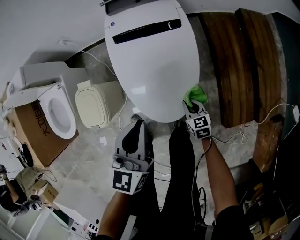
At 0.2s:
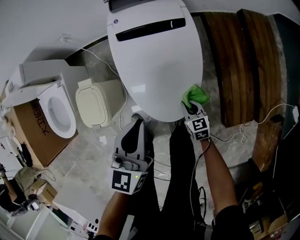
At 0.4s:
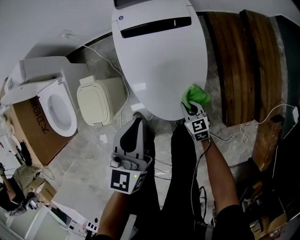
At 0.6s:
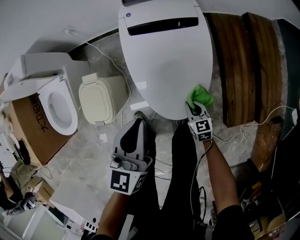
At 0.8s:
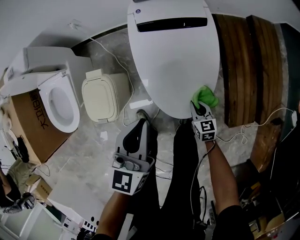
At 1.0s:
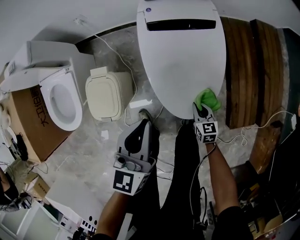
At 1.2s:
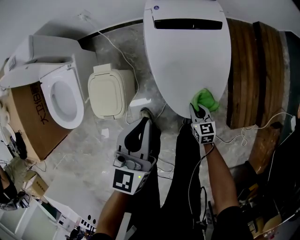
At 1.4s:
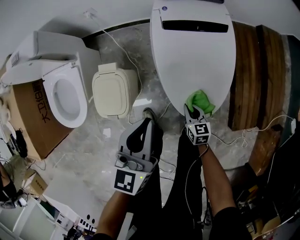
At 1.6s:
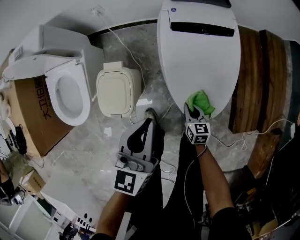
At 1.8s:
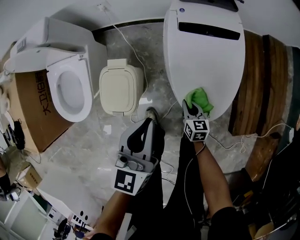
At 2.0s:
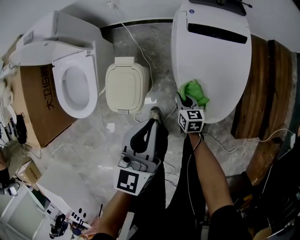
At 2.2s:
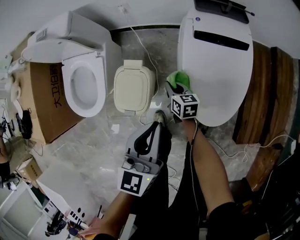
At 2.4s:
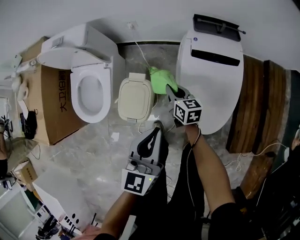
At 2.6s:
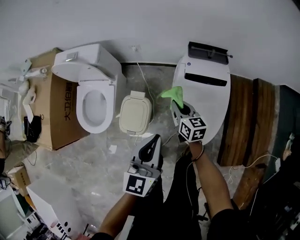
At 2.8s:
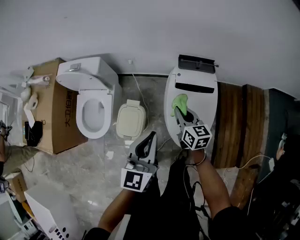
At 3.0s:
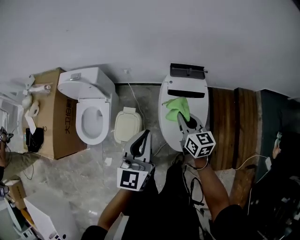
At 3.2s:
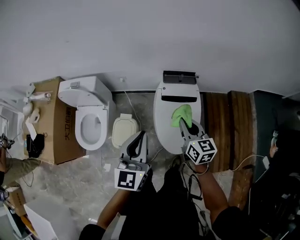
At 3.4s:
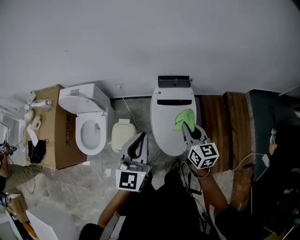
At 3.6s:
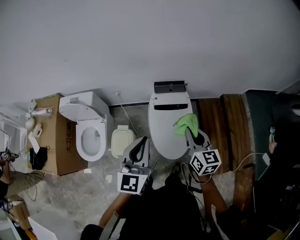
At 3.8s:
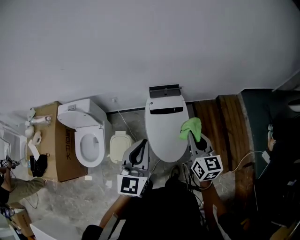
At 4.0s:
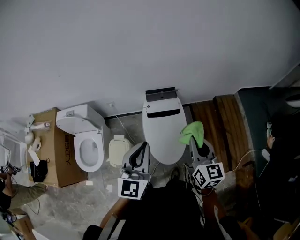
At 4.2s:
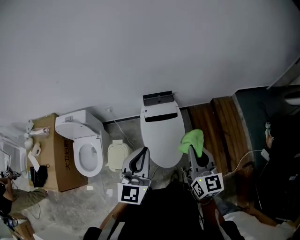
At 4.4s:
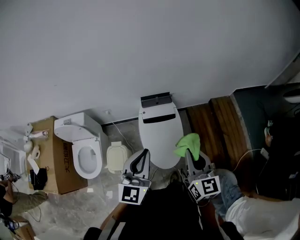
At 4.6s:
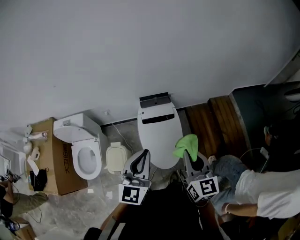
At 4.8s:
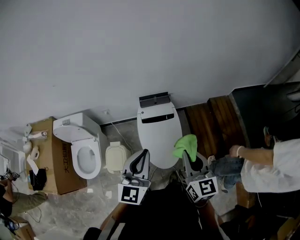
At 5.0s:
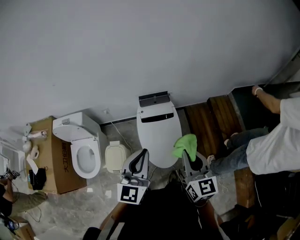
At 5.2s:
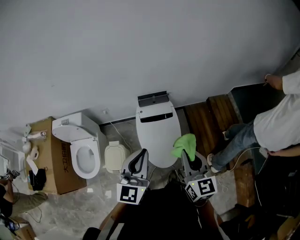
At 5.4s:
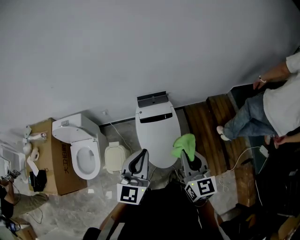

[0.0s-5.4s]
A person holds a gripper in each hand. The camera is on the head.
0.0s to 1.4s: The grippers both shift to the left by roughly 15 cm.
1.4s to 2.8s: The left gripper moves upward, roughly 25 cm. The right gripper heads upward and forward, covering some 40 cm, and swivels some 20 degrees.
2.8s to 4.0s: The left gripper shifts some 20 cm upward and to the right. Meanwhile the right gripper moves upward, to the right and backward, about 40 cm, and rotates some 30 degrees.
4.0s to 5.4s: There are only small adjustments of the grippers.

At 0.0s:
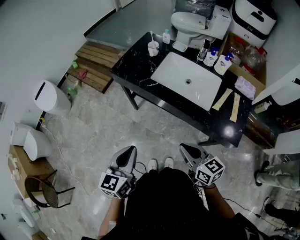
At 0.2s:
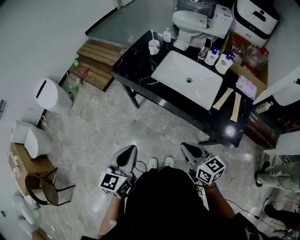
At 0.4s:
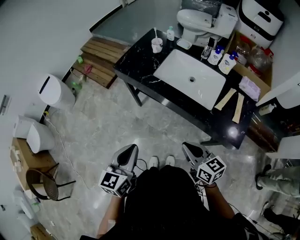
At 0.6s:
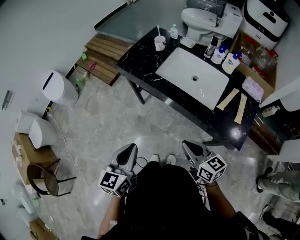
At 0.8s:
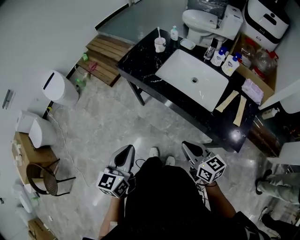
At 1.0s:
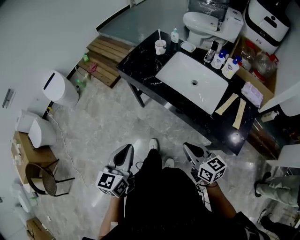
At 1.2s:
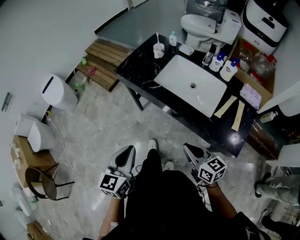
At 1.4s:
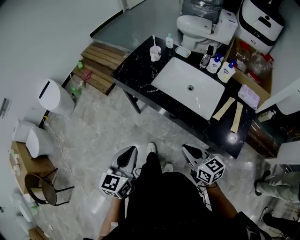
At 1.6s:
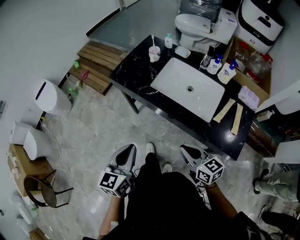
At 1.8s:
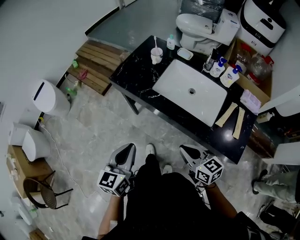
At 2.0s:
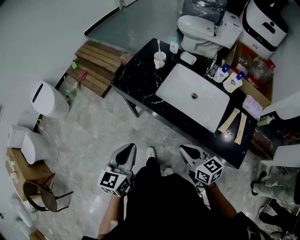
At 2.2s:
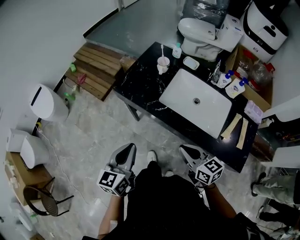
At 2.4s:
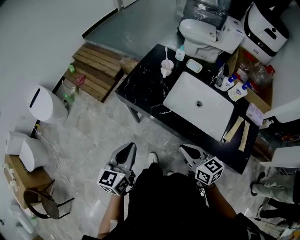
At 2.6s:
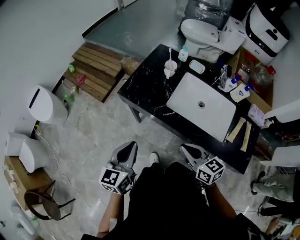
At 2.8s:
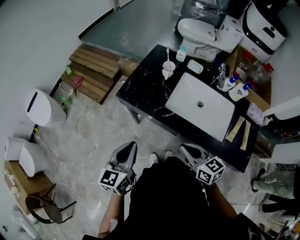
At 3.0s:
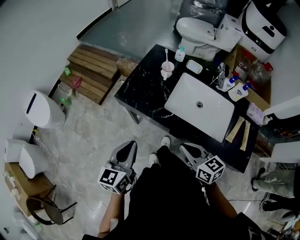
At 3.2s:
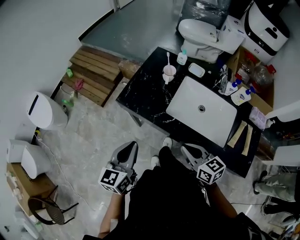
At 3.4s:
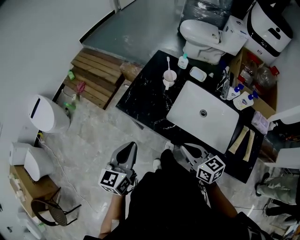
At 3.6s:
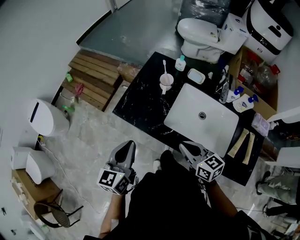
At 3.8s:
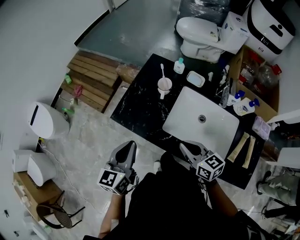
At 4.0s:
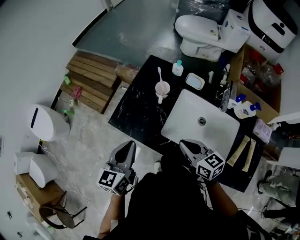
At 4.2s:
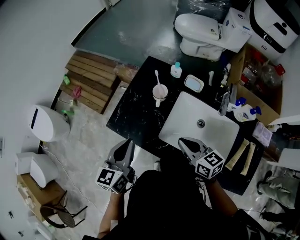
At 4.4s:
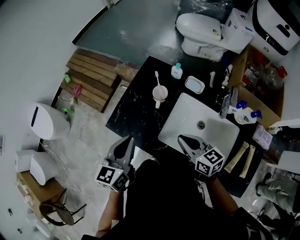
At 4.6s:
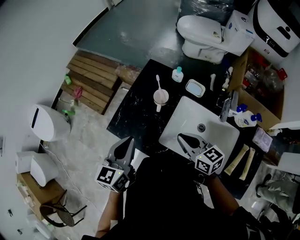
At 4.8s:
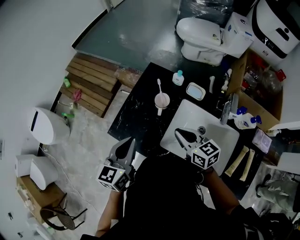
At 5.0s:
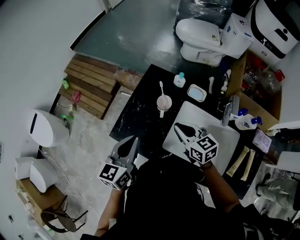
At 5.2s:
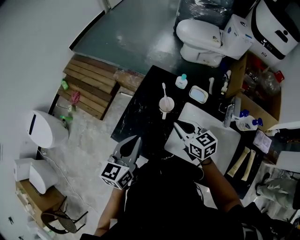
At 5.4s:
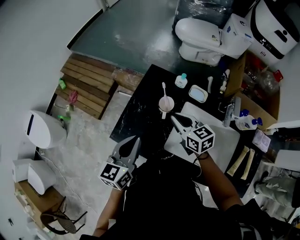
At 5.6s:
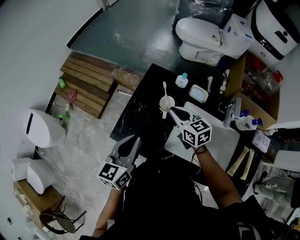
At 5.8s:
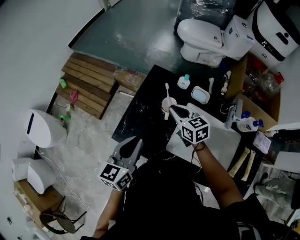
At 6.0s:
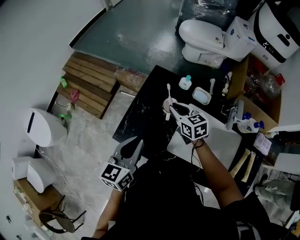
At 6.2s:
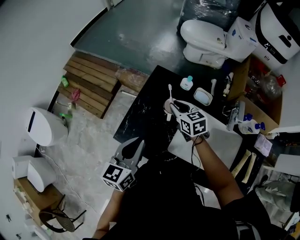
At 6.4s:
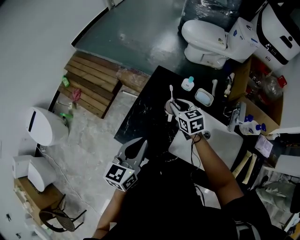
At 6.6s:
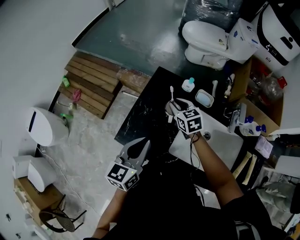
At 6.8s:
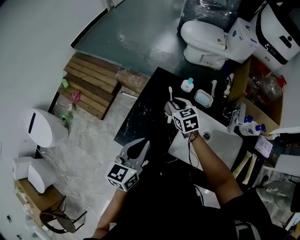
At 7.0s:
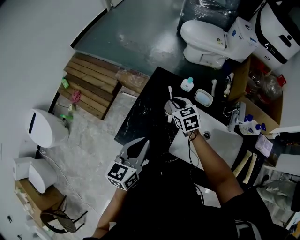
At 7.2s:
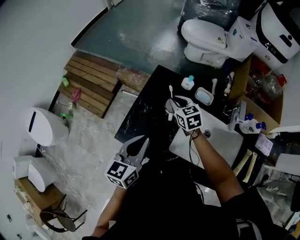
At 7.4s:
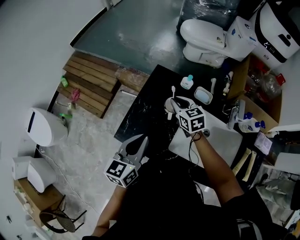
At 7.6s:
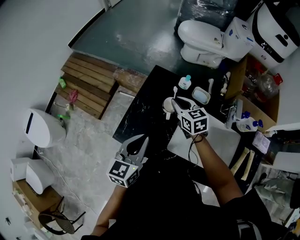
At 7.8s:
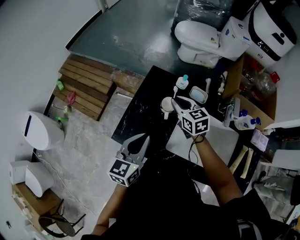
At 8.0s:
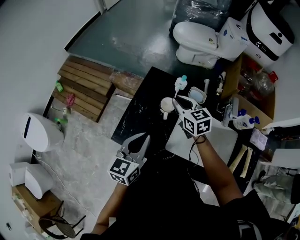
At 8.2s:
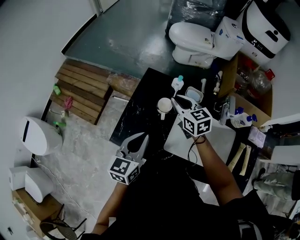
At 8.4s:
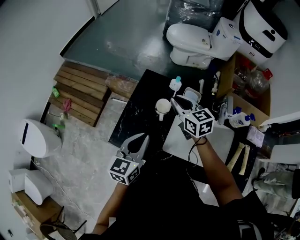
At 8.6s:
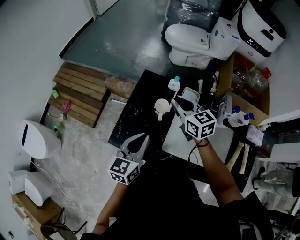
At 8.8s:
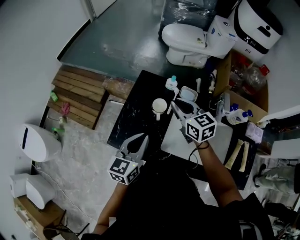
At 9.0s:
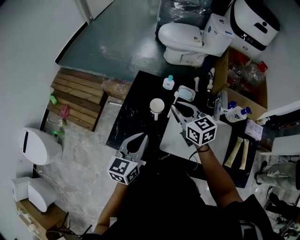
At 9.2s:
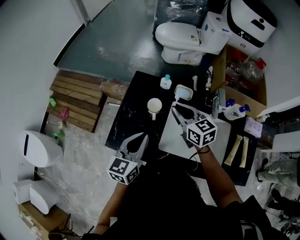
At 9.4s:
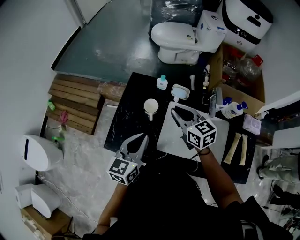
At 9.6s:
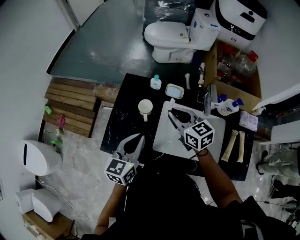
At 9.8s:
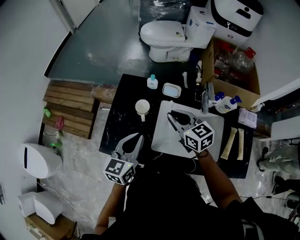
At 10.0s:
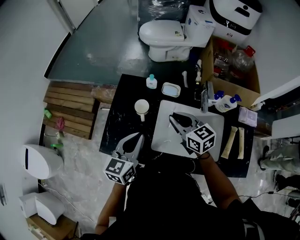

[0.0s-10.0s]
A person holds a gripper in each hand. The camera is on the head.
0.0s to 1.4s: The right gripper moves about 5 cm.
1.4s to 2.8s: The two grippers go approximately 20 cm forward and to the left.
2.8s to 4.2s: The right gripper heads forward, covering some 20 cm; the left gripper shifts approximately 20 cm forward and to the right.
4.2s to 5.8s: The right gripper is displaced forward by about 20 cm, while the left gripper travels forward by roughly 5 cm.
5.8s to 7.2s: The right gripper goes about 5 cm forward.
7.2s to 8.6s: The right gripper shifts some 10 cm upward.
8.6s to 10.0s: The left gripper heads to the right, covering approximately 5 cm. Meanwhile the right gripper goes roughly 10 cm to the right and backward.

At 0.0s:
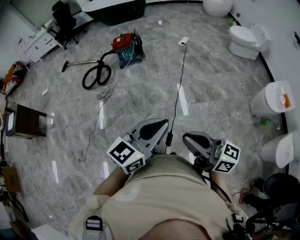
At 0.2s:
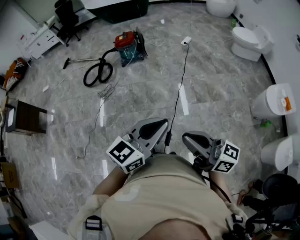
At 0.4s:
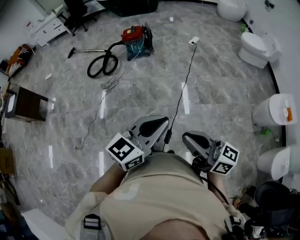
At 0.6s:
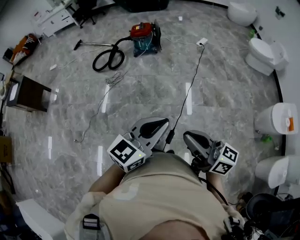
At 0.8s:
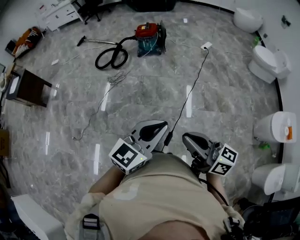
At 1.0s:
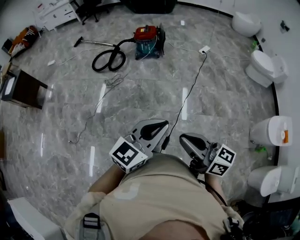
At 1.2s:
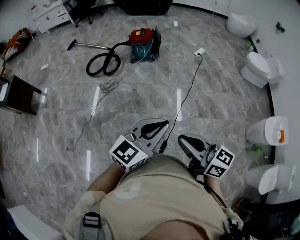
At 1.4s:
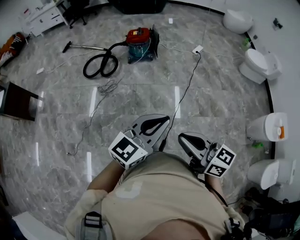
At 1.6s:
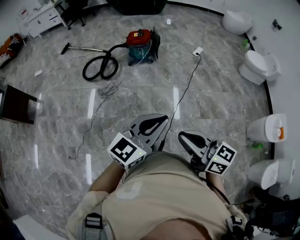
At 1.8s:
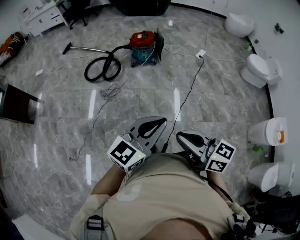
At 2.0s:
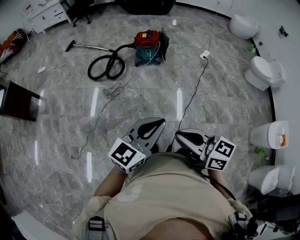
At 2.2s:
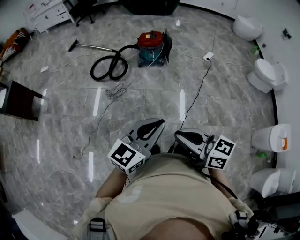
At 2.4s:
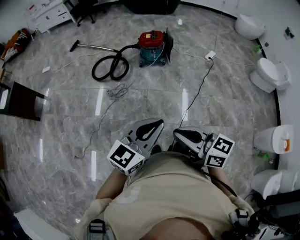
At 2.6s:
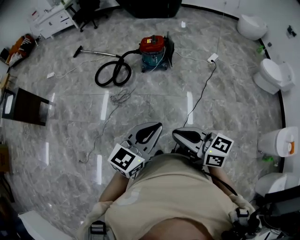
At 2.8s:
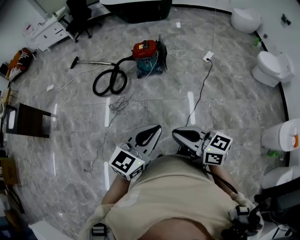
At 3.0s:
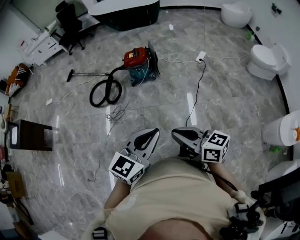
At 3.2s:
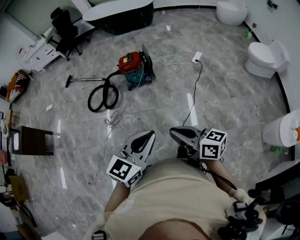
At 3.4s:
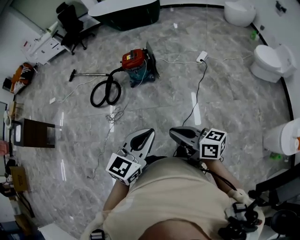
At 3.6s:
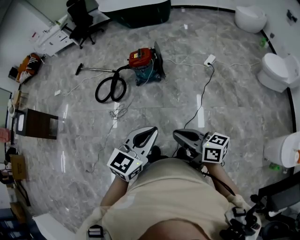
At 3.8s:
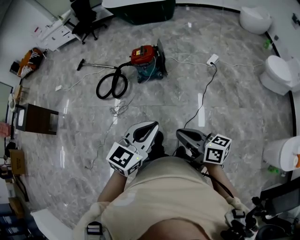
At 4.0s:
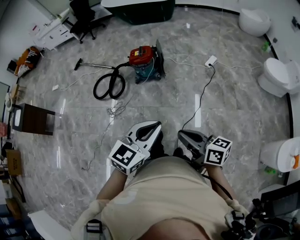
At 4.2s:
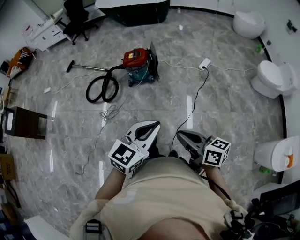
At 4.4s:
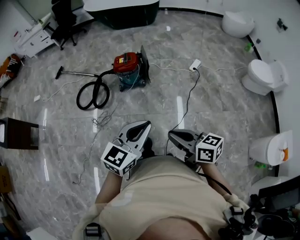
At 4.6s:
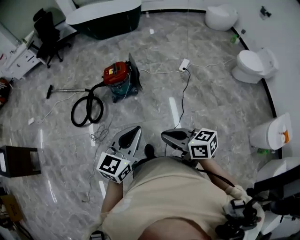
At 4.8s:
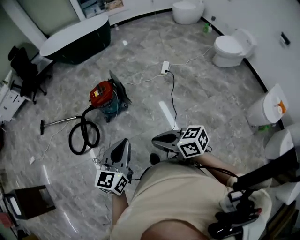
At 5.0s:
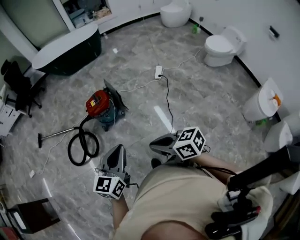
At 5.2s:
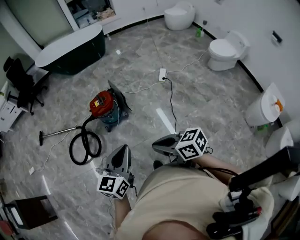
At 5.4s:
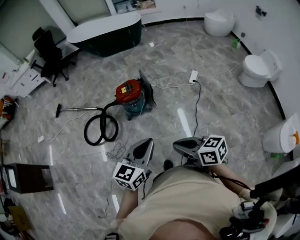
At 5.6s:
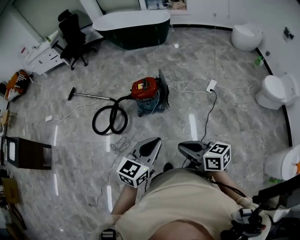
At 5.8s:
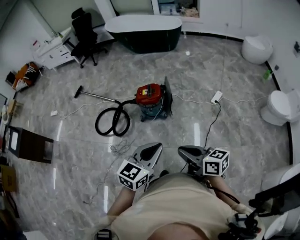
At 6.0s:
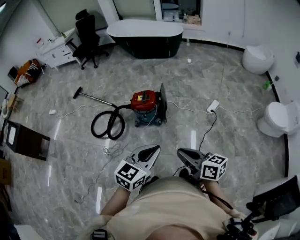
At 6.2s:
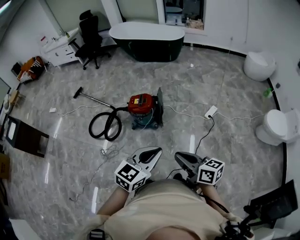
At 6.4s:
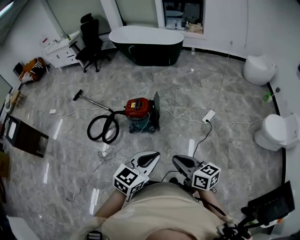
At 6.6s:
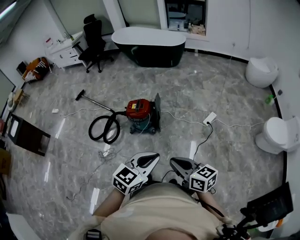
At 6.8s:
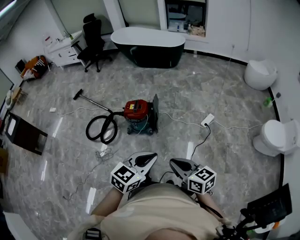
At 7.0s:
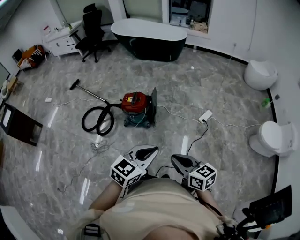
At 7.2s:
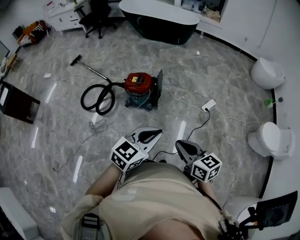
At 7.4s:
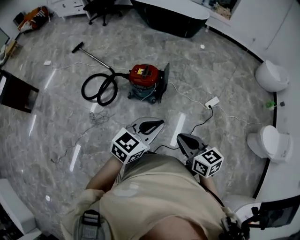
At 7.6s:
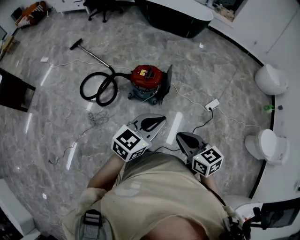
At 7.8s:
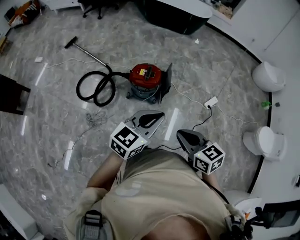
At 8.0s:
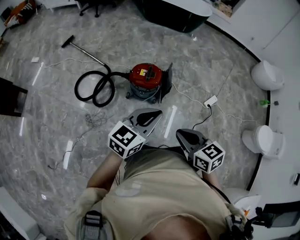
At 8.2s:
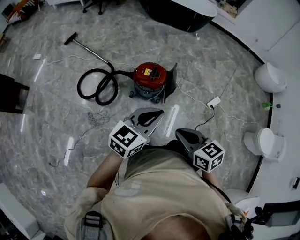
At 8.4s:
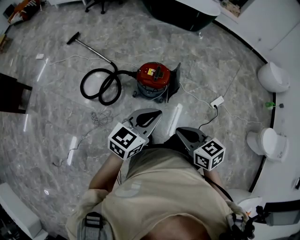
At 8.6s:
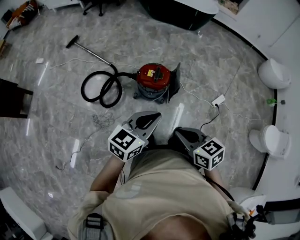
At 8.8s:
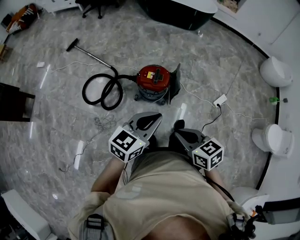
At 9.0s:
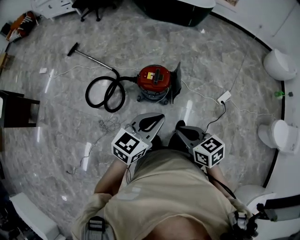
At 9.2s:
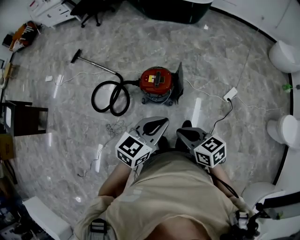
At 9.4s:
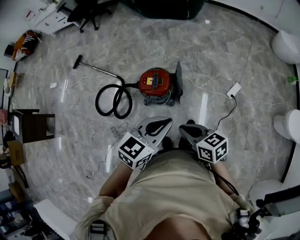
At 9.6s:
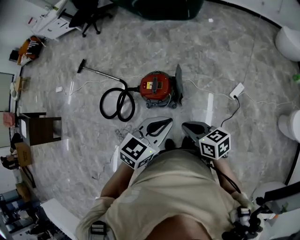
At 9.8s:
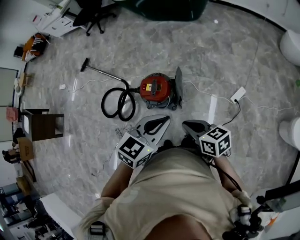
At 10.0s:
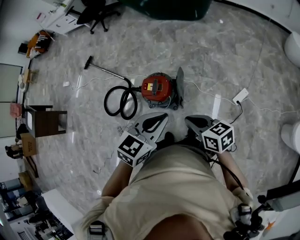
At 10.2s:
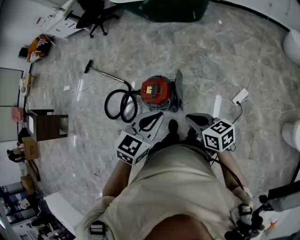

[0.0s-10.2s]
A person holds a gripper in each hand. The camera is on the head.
0.0s to 1.4s: The left gripper heads forward and to the left, covering roughly 20 cm. The right gripper moves to the left and forward, approximately 20 cm.
1.4s to 3.0s: Both grippers travel together forward, roughly 20 cm.
3.0s to 4.4s: The left gripper goes roughly 15 cm forward, while the right gripper travels forward and to the right by some 15 cm.
4.4s to 5.8s: The two grippers go about 15 cm forward.
5.8s to 7.2s: The grippers both shift to the right and forward by approximately 20 cm.
7.2s to 8.8s: The right gripper travels to the left and forward by some 25 cm. The left gripper moves forward and to the left, some 30 cm.
8.8s to 10.2s: Both grippers travel together to the right and forward, some 30 cm. The left gripper changes its angle by about 20 degrees.
